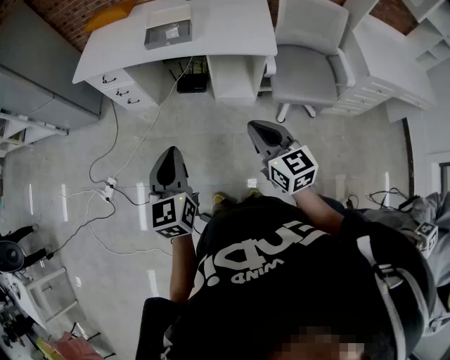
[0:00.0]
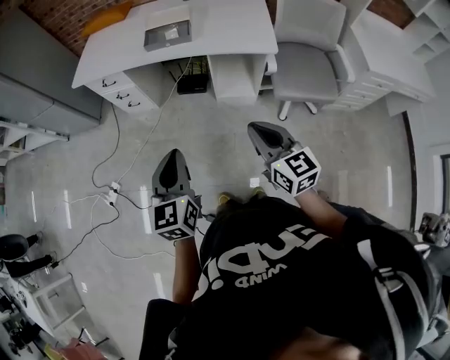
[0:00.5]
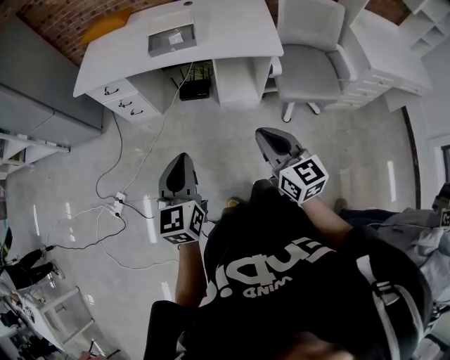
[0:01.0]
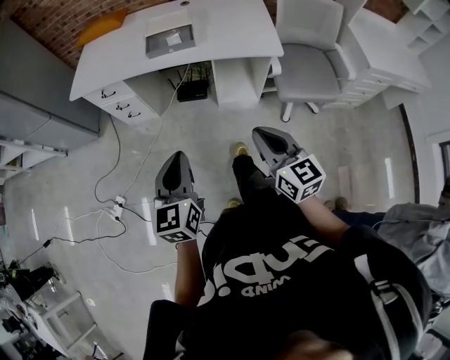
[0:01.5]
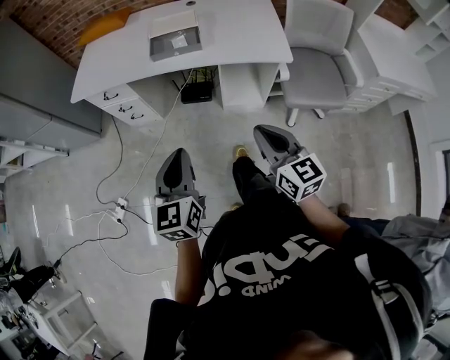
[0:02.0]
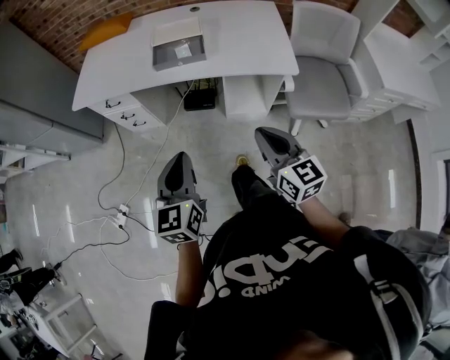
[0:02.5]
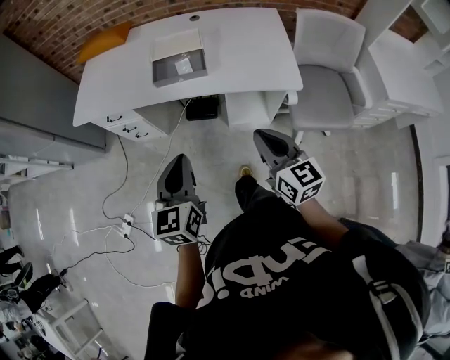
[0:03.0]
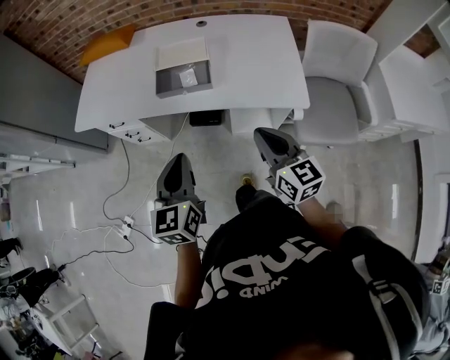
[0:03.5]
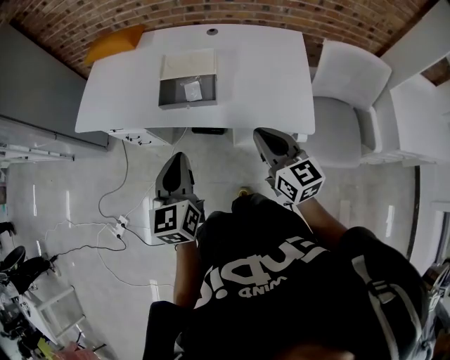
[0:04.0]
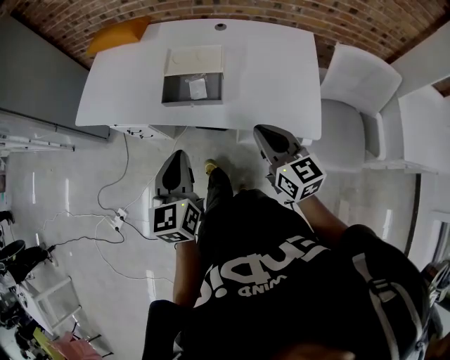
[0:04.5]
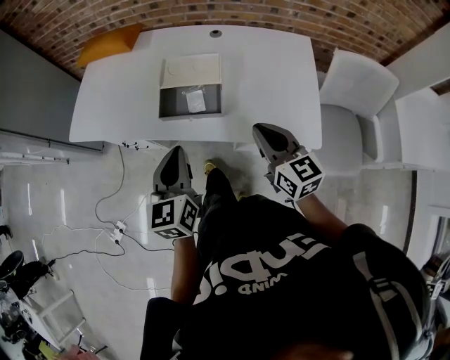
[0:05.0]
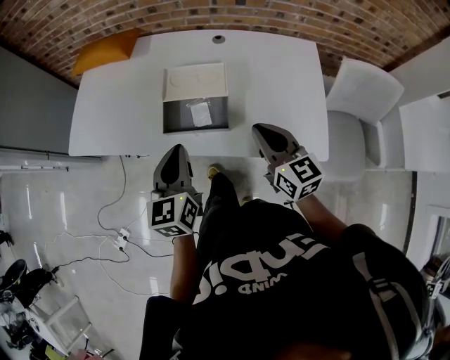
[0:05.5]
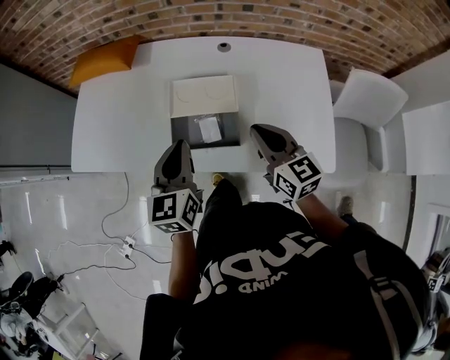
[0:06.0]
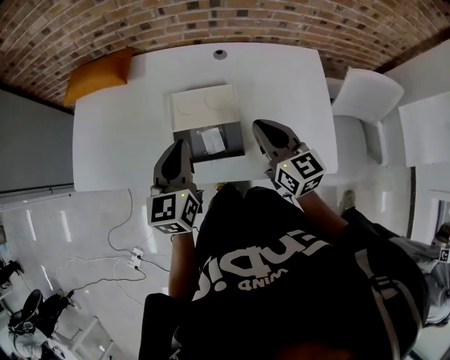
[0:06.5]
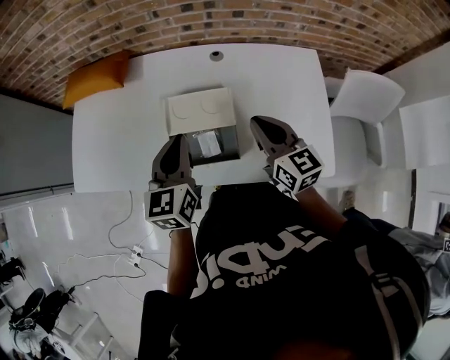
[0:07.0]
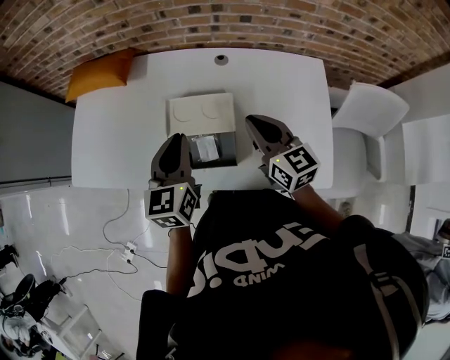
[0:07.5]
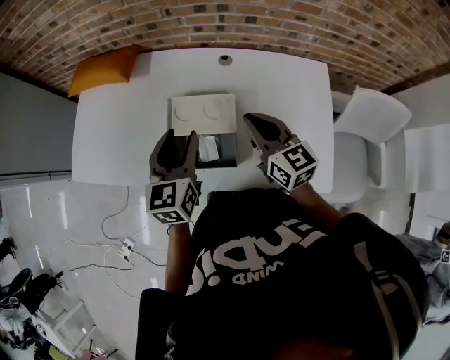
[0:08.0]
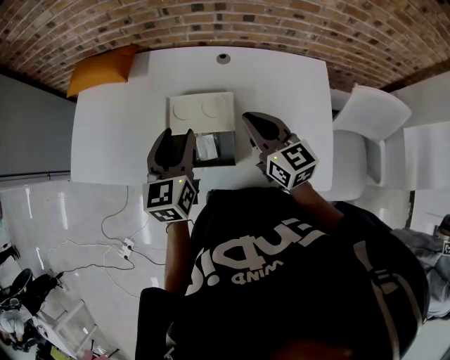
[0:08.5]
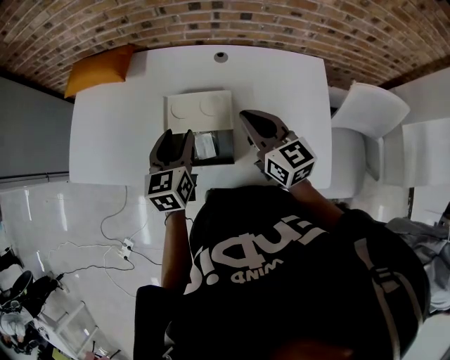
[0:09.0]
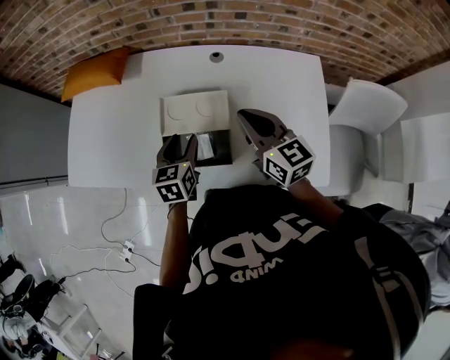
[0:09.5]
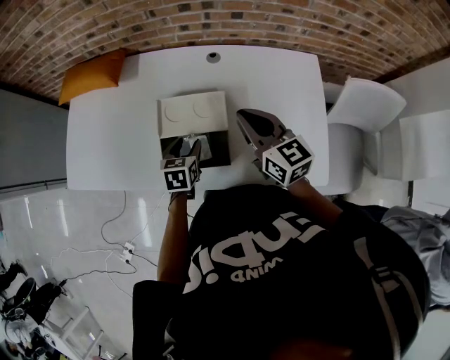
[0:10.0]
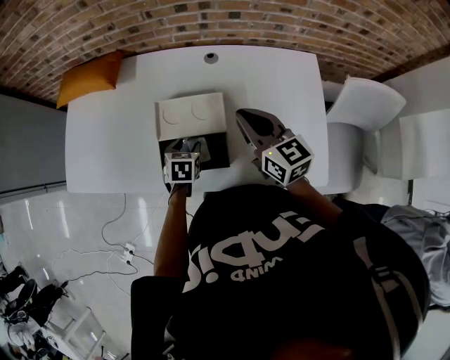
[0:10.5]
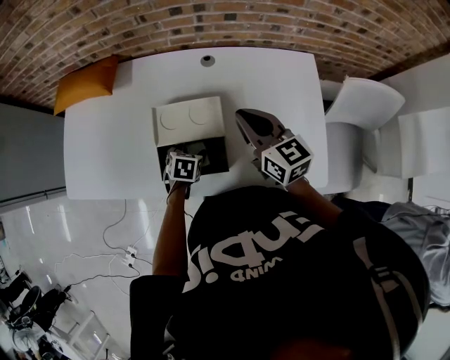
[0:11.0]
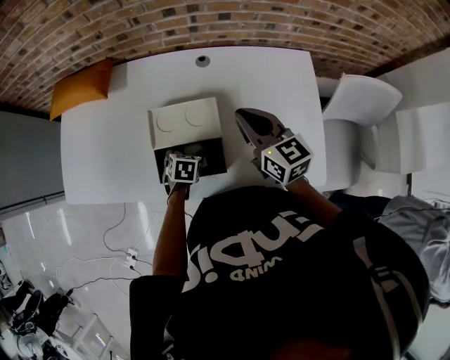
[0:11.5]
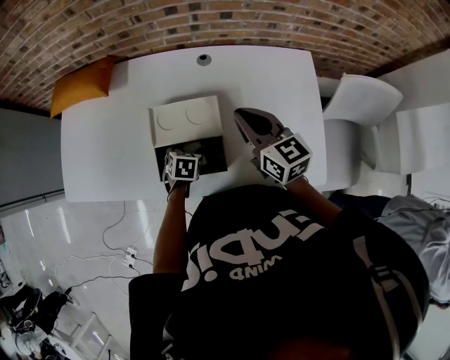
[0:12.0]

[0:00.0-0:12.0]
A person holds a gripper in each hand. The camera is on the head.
0:00.0 to 0:02.0: Both grippers move forward and to the left, roughly 10 cm.
0:02.0 to 0:04.0: Both grippers move forward, about 30 cm.
0:04.0 to 0:06.0: The two grippers go some 25 cm forward.
0:06.0 to 0:08.0: The grippers both shift forward by about 10 cm. The left gripper opens.
0:08.0 to 0:10.0: The left gripper moves downward, about 20 cm, and changes its angle by roughly 30 degrees.
0:10.0 to 0:12.0: The left gripper travels downward by about 10 cm, and turns by some 20 degrees.

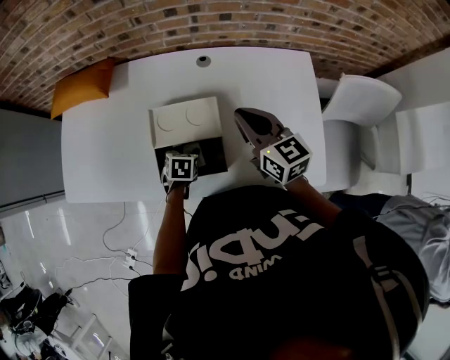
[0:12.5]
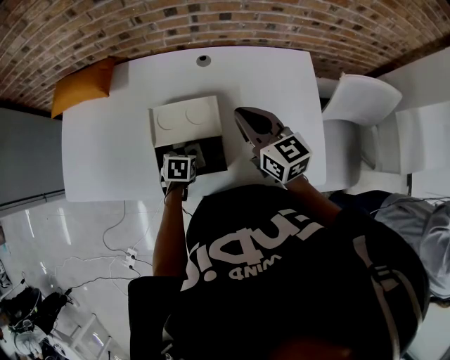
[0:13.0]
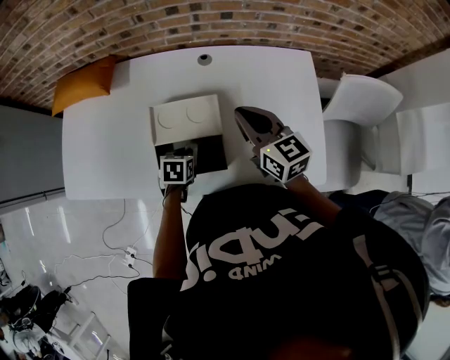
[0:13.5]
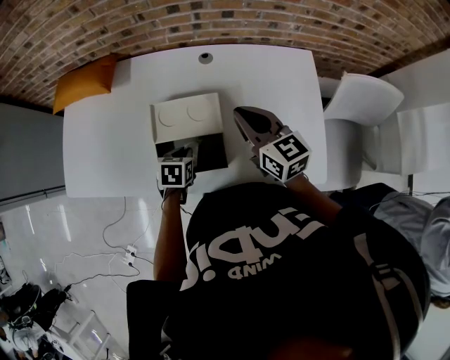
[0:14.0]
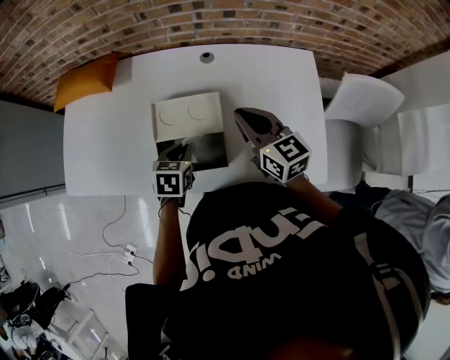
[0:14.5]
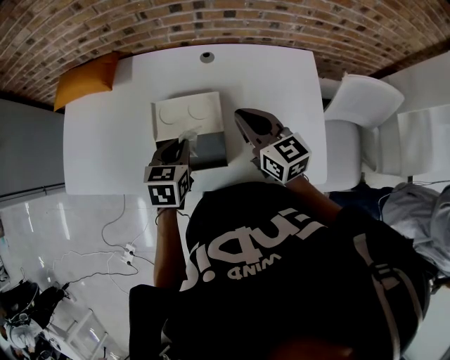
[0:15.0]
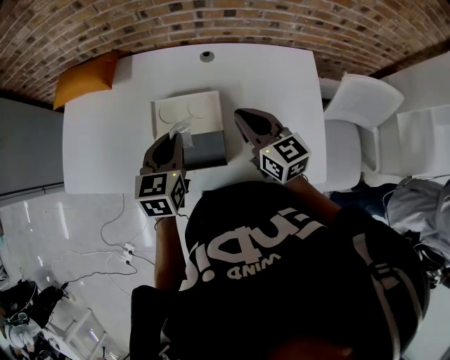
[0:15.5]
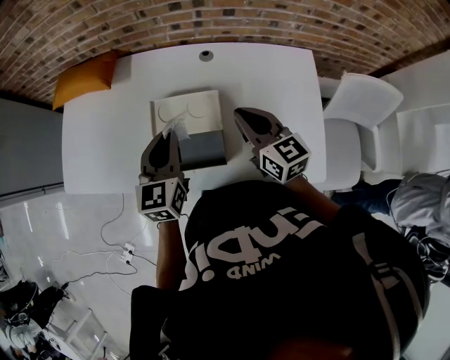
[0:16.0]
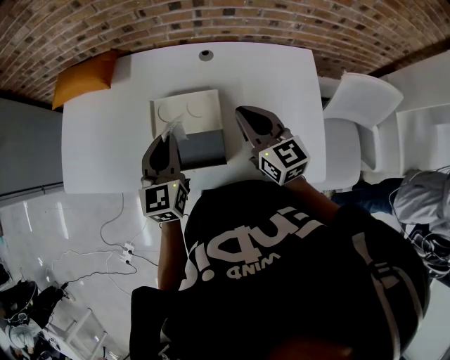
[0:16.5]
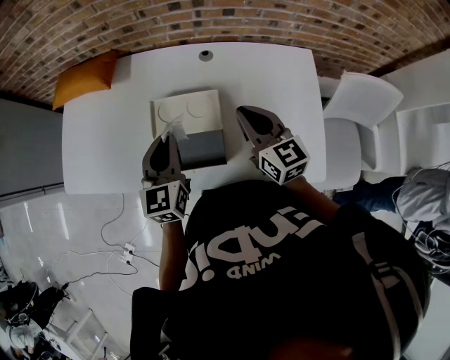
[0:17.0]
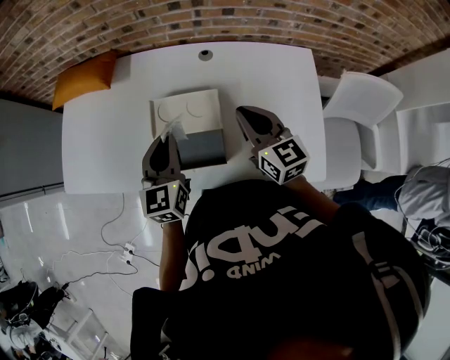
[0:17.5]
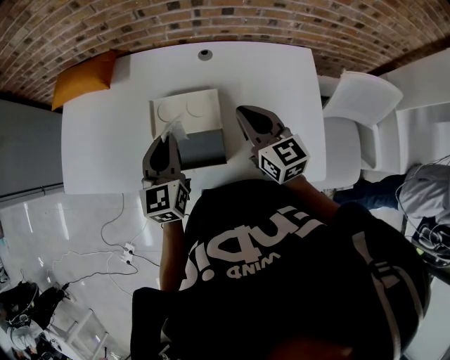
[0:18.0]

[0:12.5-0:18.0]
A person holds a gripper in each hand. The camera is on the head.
0:12.5 to 0:14.5: The left gripper travels upward by some 10 cm, and closes its fingers.
0:14.5 to 0:16.0: The left gripper is displaced upward by approximately 15 cm, and tips its fingers upward by some 30 degrees.
0:16.0 to 0:18.0: The grippers move only a little.

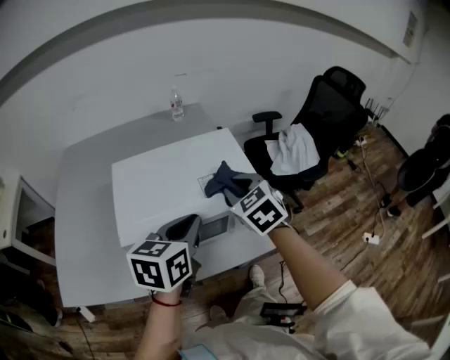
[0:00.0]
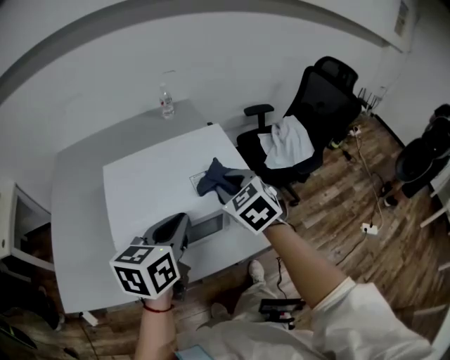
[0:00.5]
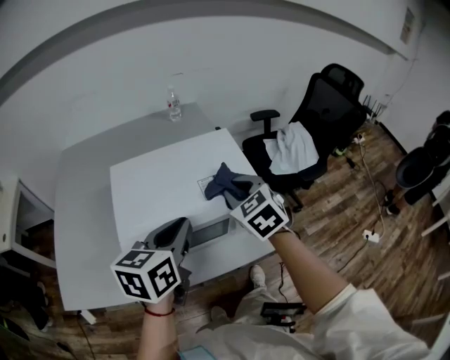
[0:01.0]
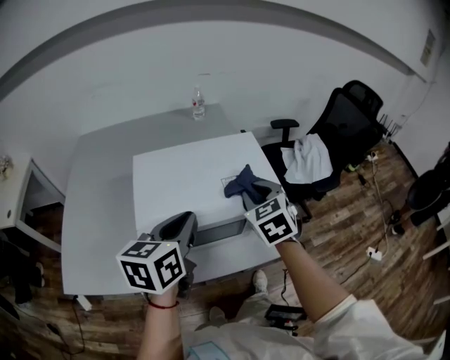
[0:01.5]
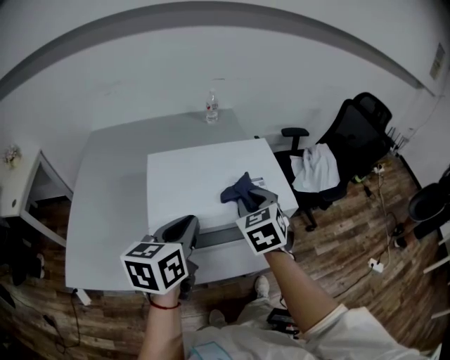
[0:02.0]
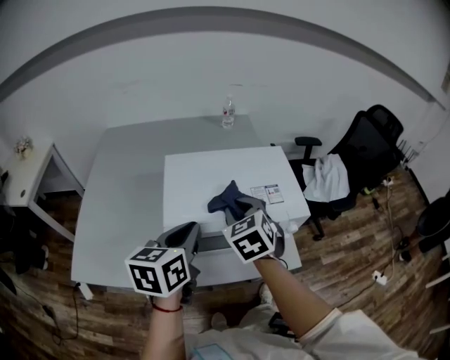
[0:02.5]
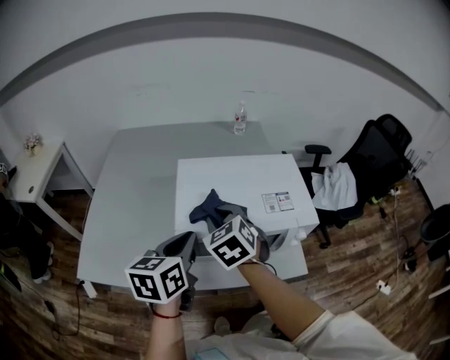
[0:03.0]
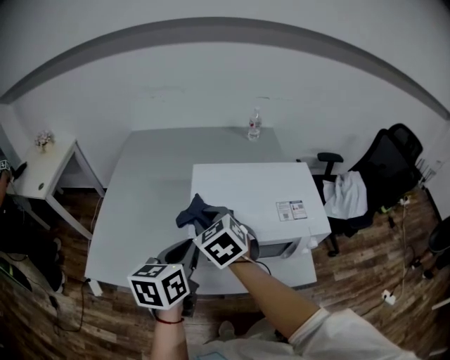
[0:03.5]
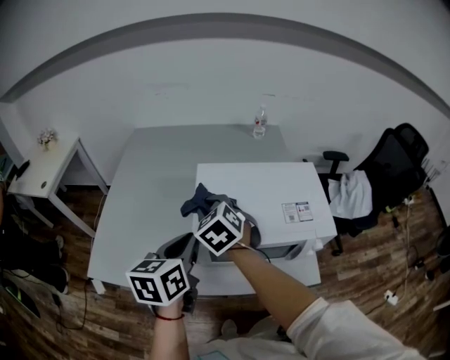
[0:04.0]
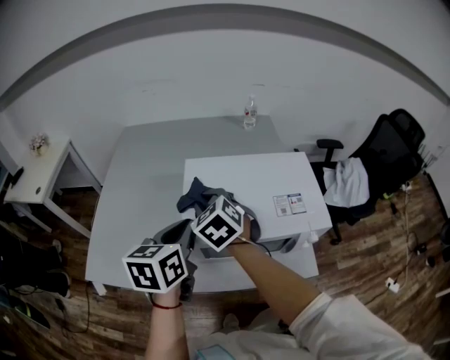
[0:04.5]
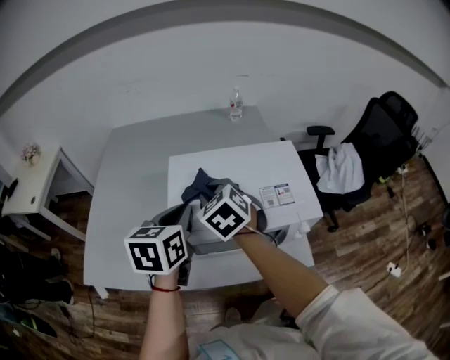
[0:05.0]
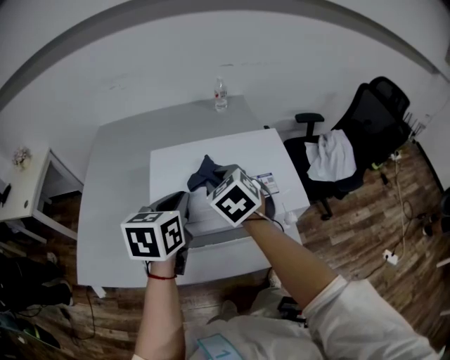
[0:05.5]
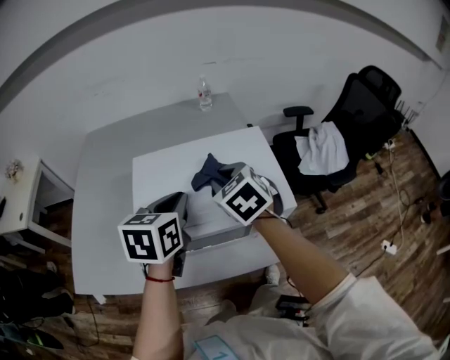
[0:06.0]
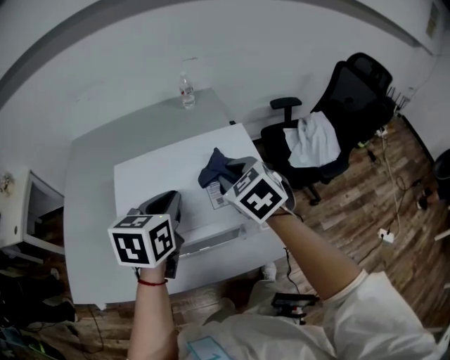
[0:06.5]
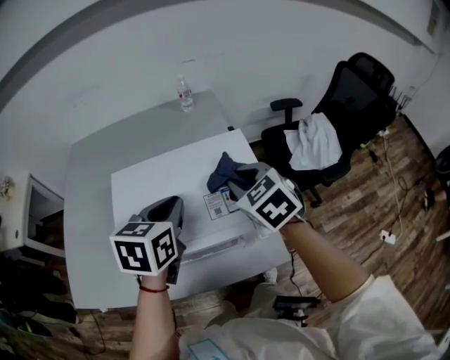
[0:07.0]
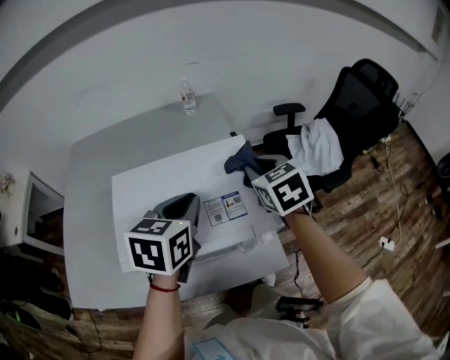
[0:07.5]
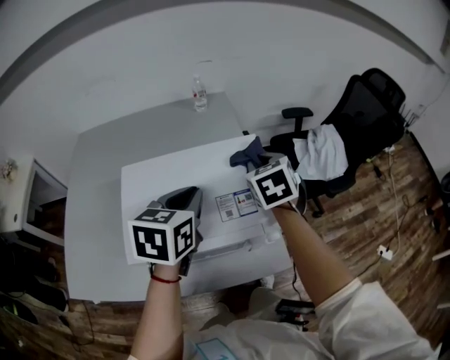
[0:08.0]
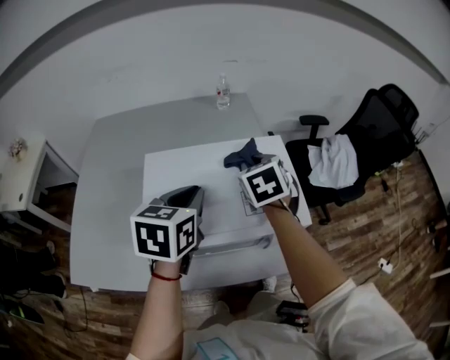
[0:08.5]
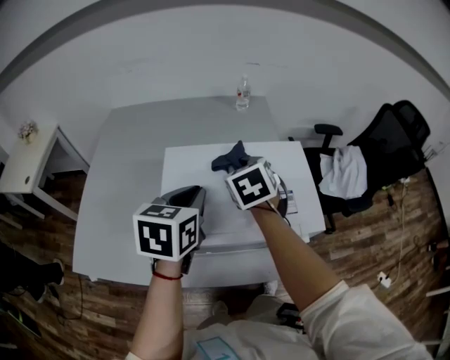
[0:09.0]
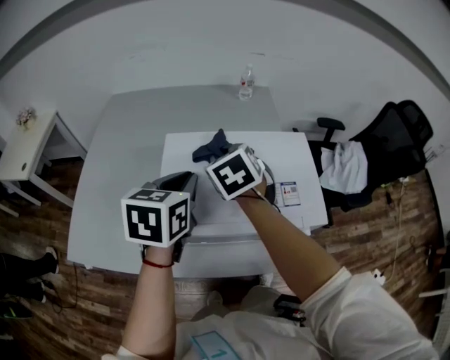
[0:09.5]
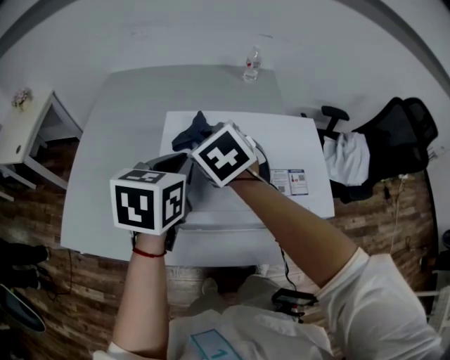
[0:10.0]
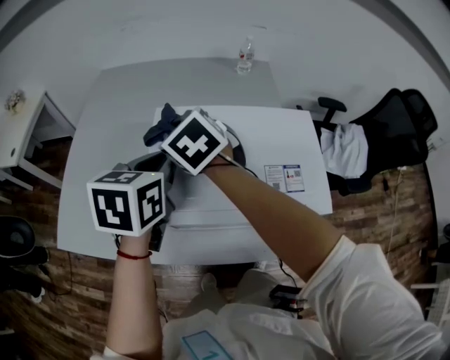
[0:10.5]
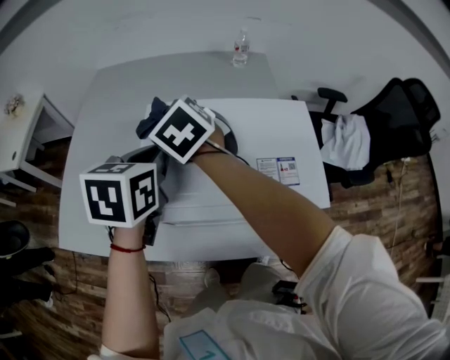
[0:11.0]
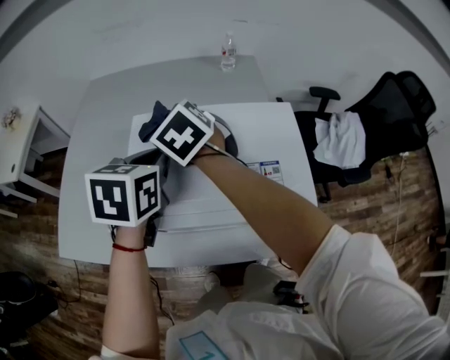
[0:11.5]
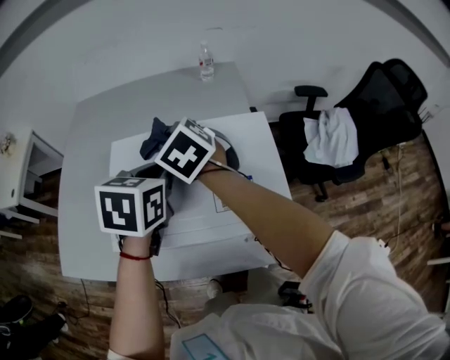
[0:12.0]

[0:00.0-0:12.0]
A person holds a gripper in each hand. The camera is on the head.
0:00.0 to 0:02.0: The right gripper travels to the left by about 5 cm; the left gripper goes about 10 cm to the left.
0:02.0 to 0:04.0: The right gripper is displaced to the left by roughly 25 cm, and swivels about 30 degrees. Meanwhile the left gripper shifts approximately 10 cm to the left.
0:04.0 to 0:06.0: The right gripper travels to the right by about 20 cm. The left gripper is displaced to the right and forward by some 15 cm.
0:06.0 to 0:08.0: The right gripper moves to the right and forward, some 15 cm, and swivels about 20 degrees. Meanwhile the left gripper heads to the right, covering about 5 cm.
0:08.0 to 0:10.0: The left gripper is displaced to the left by about 15 cm. Meanwhile the right gripper is displaced to the left by some 30 cm, and swivels roughly 30 degrees.
0:10.0 to 0:12.0: The grippers both shift to the right by about 10 cm.
